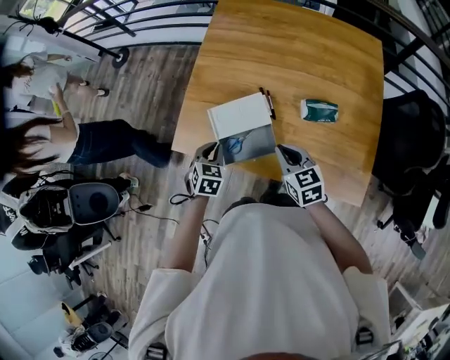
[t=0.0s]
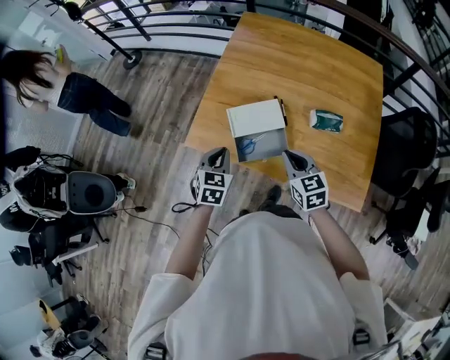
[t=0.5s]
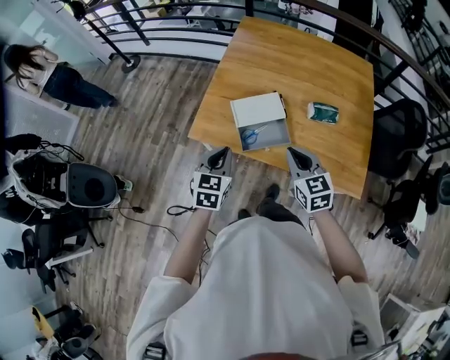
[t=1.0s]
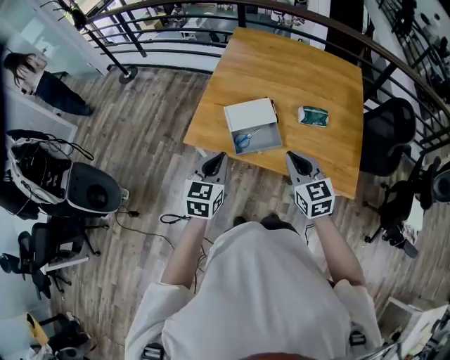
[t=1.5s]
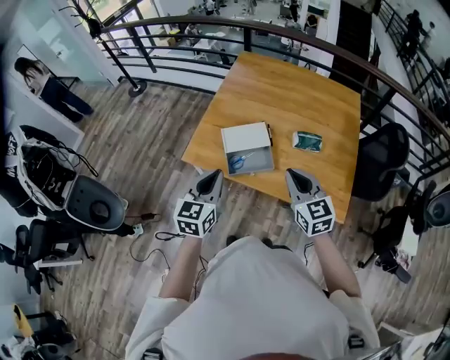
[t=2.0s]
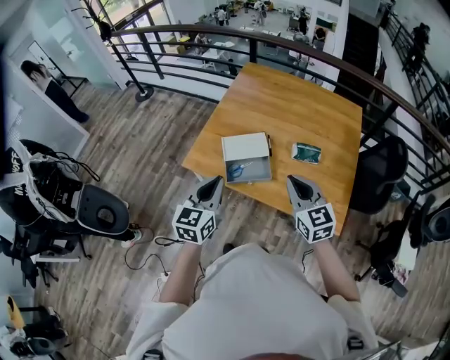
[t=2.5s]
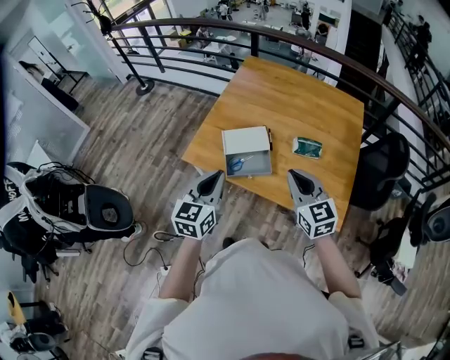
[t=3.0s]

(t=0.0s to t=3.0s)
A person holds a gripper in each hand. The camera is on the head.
t=0.0s - t=1.5s: The right gripper moves backward, upward and to the left, some 20 cm. Meanwhile the left gripper heads backward and upward, covering roughly 25 cm, and turns by roughly 30 degrees.
t=1.5s - t=3.0s: Both grippers move upward and to the right, some 10 cm.

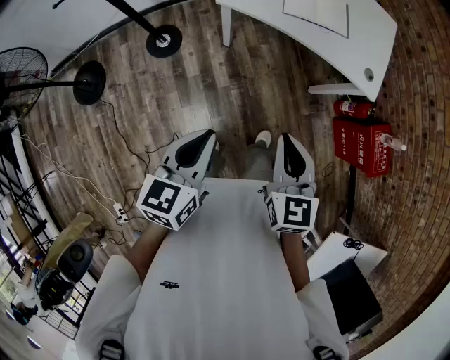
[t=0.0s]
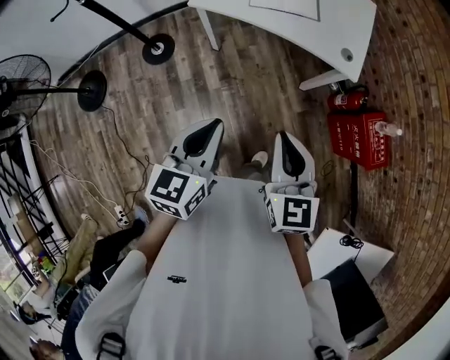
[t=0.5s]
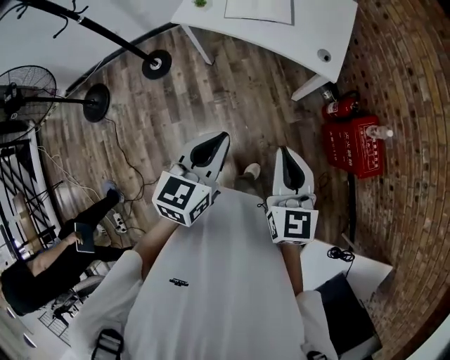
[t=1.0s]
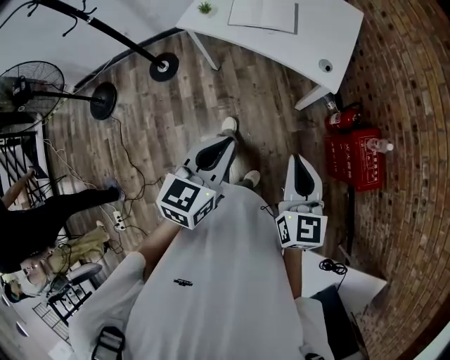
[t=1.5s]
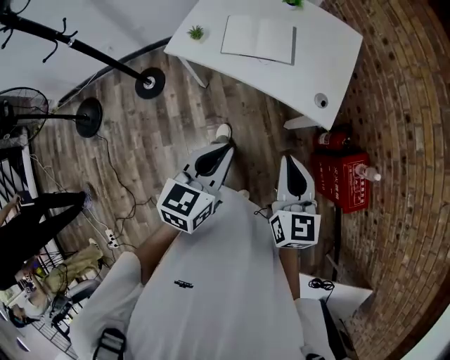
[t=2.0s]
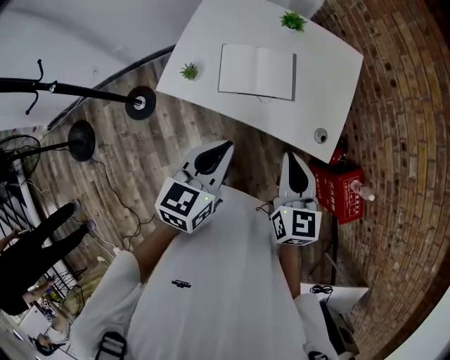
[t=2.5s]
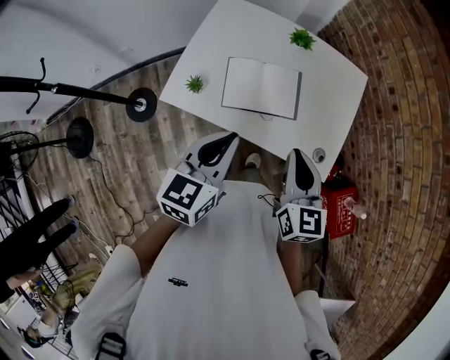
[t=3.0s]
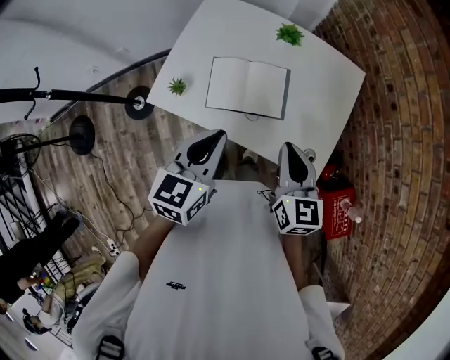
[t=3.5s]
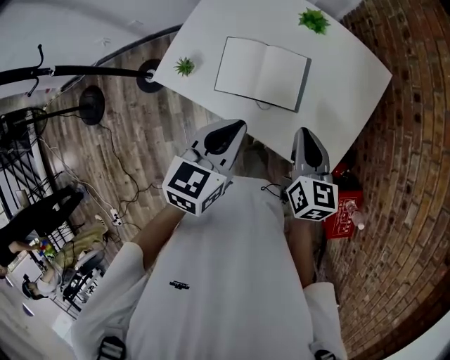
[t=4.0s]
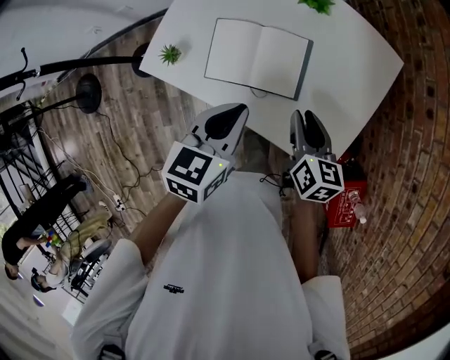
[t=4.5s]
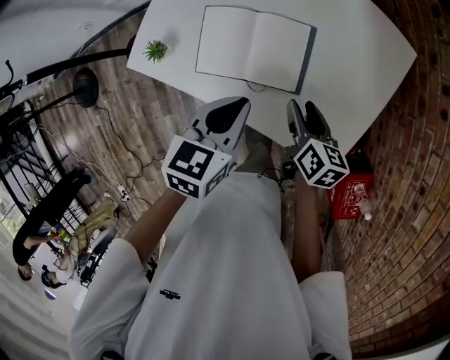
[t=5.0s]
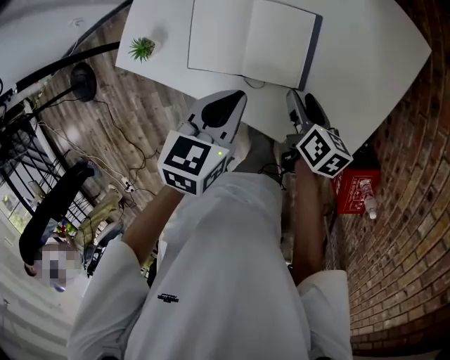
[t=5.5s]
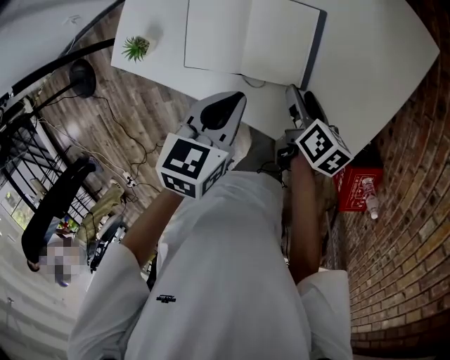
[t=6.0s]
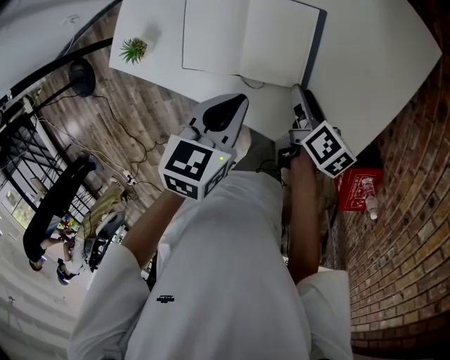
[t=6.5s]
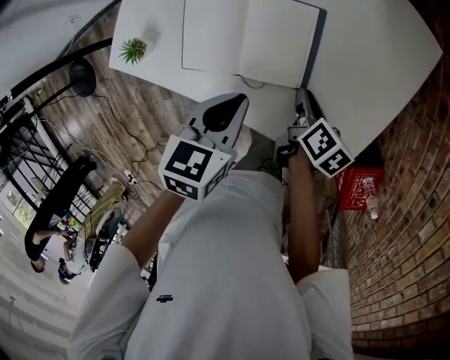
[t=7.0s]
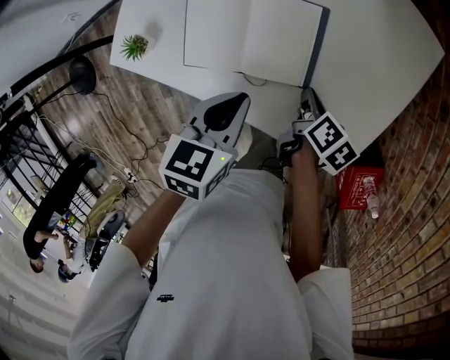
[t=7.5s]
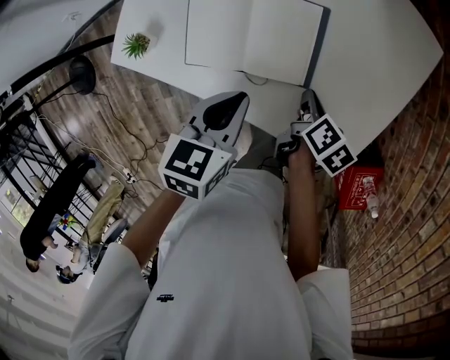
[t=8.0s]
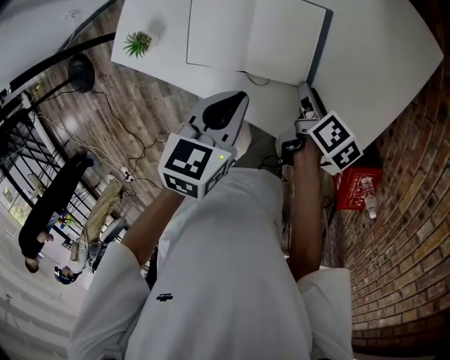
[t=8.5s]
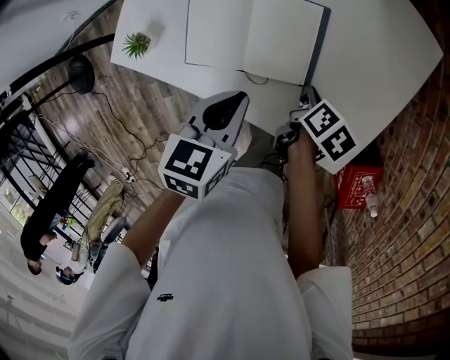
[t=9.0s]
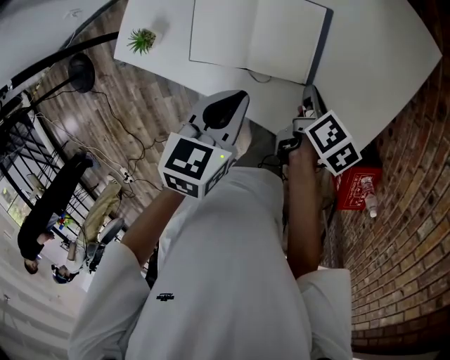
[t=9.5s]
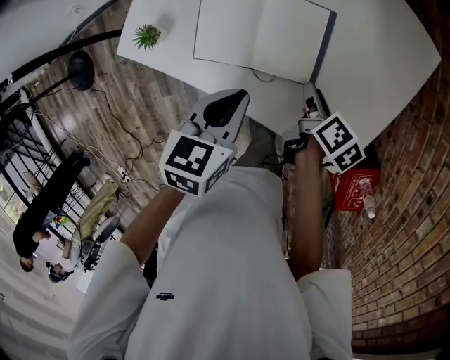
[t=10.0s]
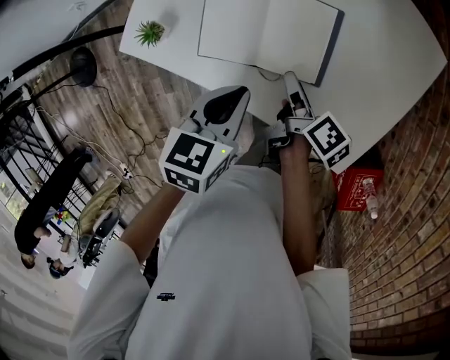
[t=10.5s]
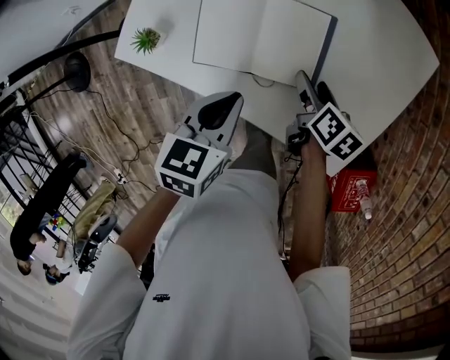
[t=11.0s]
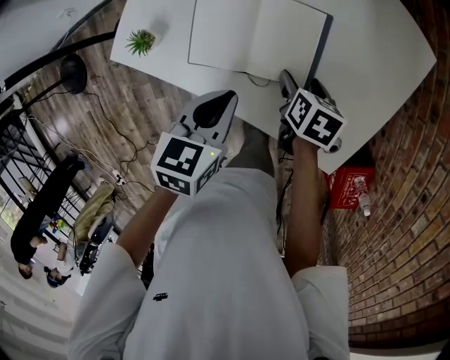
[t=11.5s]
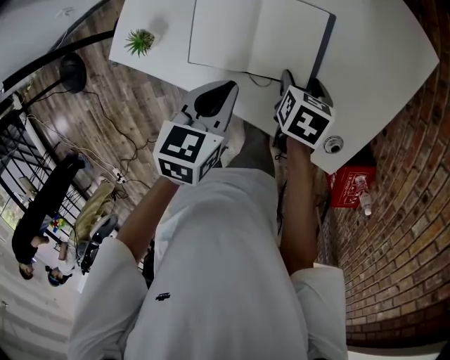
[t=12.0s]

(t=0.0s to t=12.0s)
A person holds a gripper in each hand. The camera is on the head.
t=0.0s - t=2.0s: Both grippers travel together to the right and forward, roughly 30 cm.
t=2.0s - t=4.0s: The grippers both shift forward by approximately 30 cm.
t=4.0s - t=6.0s: The grippers both shift downward by about 20 cm. The right gripper changes its angle by some 40 degrees, and opens.
t=6.0s - t=8.0s: The right gripper closes up.
t=8.0s - t=10.0s: The right gripper opens up.
t=10.0s - t=12.0s: The right gripper rotates roughly 40 degrees, and opens up.

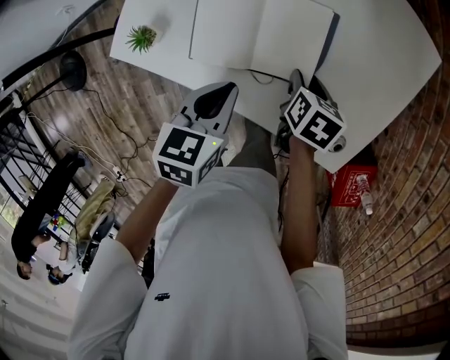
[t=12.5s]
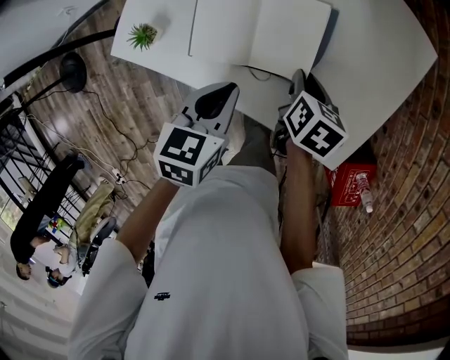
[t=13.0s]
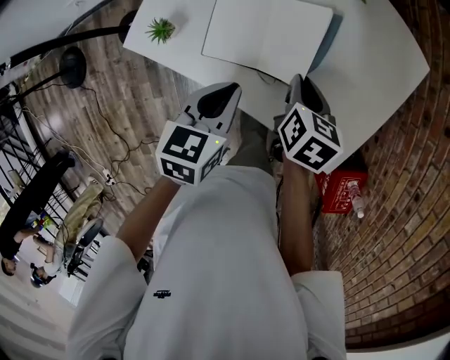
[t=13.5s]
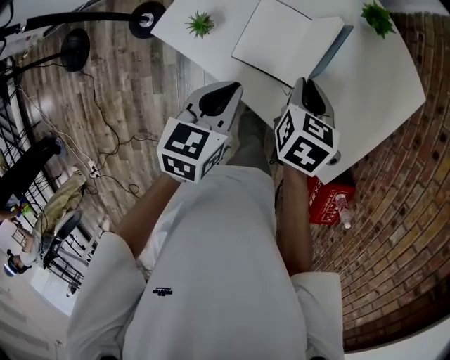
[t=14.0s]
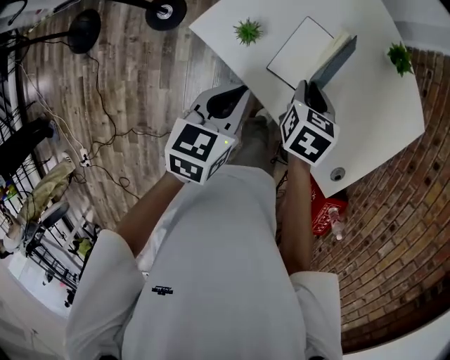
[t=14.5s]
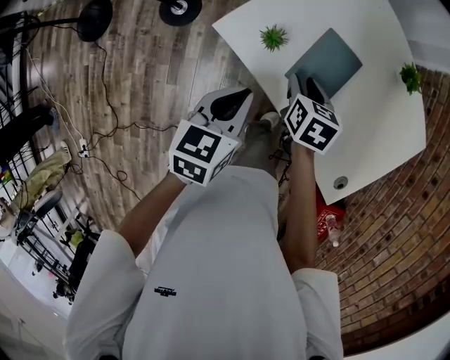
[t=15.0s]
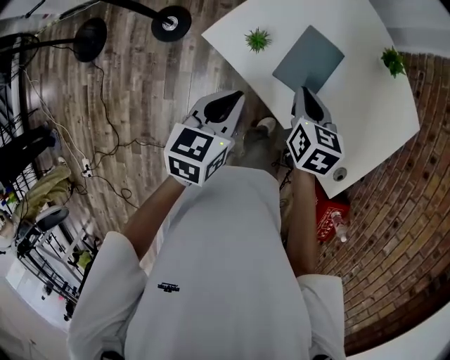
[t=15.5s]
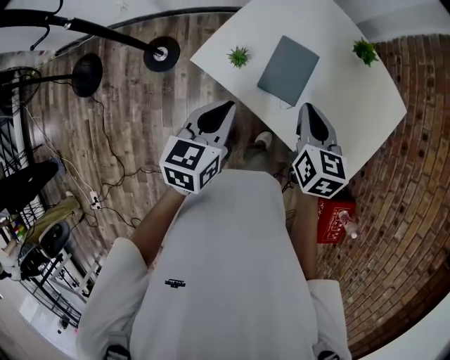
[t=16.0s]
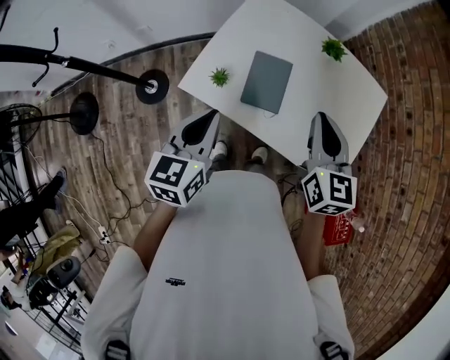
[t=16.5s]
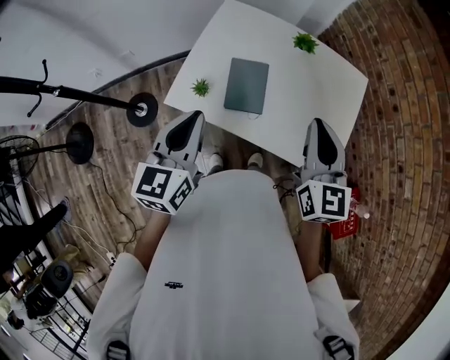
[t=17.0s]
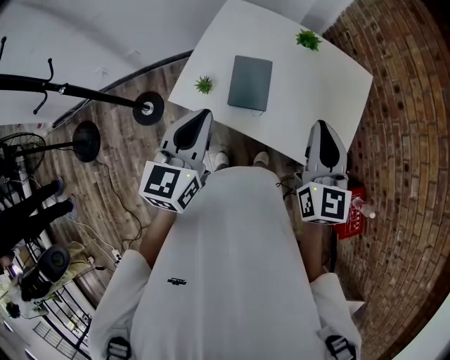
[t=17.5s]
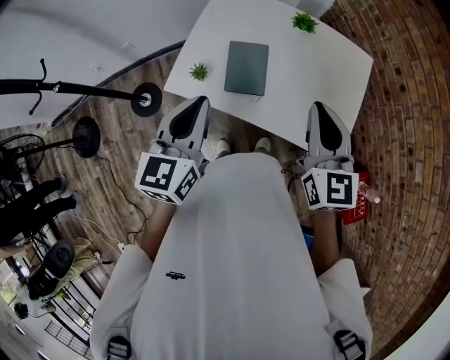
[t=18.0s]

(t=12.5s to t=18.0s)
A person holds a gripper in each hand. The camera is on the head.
t=12.5s - t=14.5s: The two grippers go approximately 20 cm to the left and upward. The right gripper rotates some 30 degrees.
t=14.5s - t=16.0s: The left gripper travels upward by some 10 cm; the right gripper is displaced upward by about 15 cm, and rotates approximately 20 degrees.
t=16.0s - t=18.0s: The right gripper travels upward, to the right and backward by some 20 cm, and changes its angle by about 30 degrees; the left gripper travels upward by some 15 cm, and swivels approximately 20 degrees.

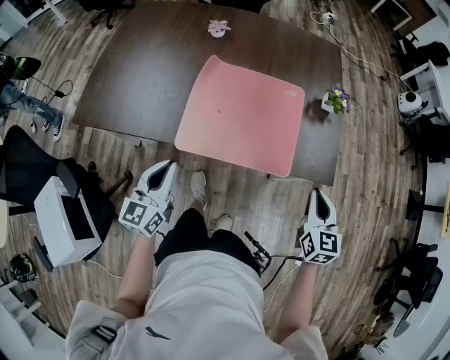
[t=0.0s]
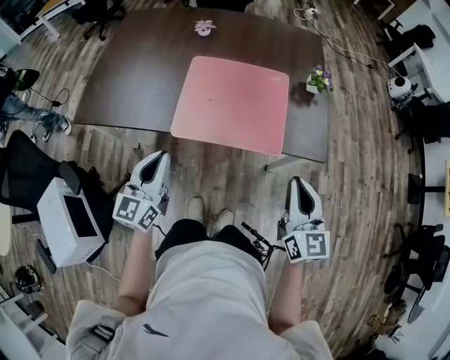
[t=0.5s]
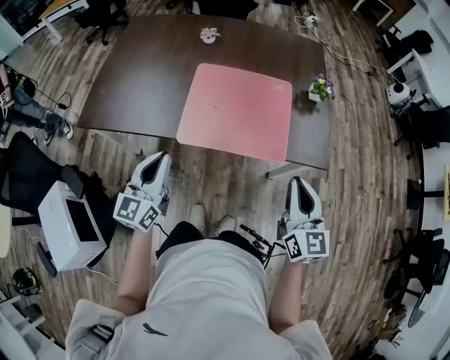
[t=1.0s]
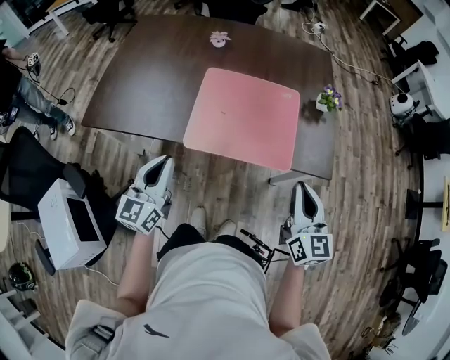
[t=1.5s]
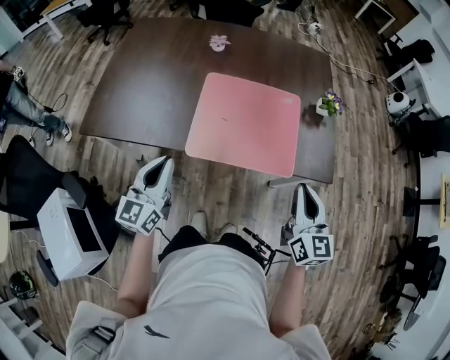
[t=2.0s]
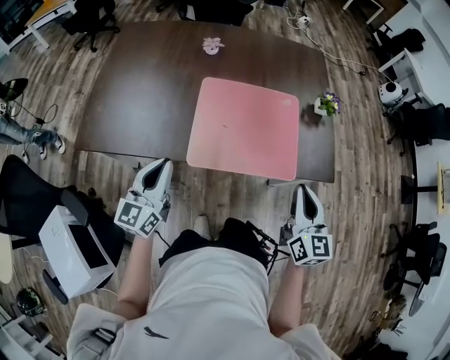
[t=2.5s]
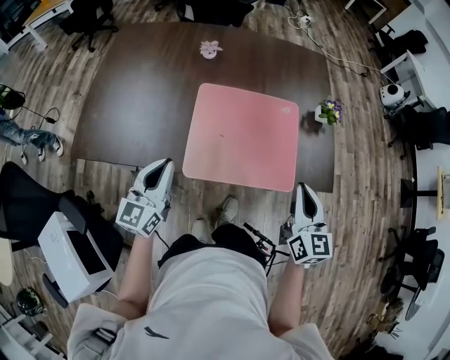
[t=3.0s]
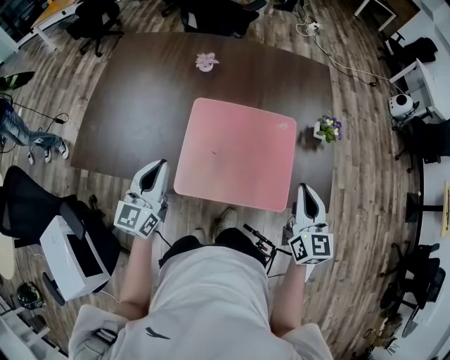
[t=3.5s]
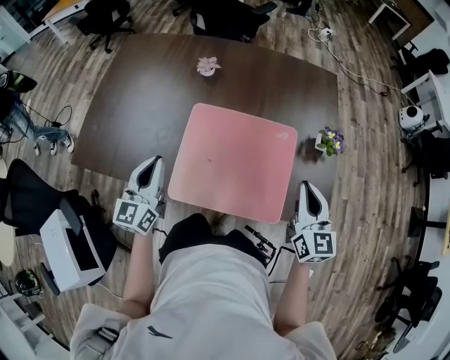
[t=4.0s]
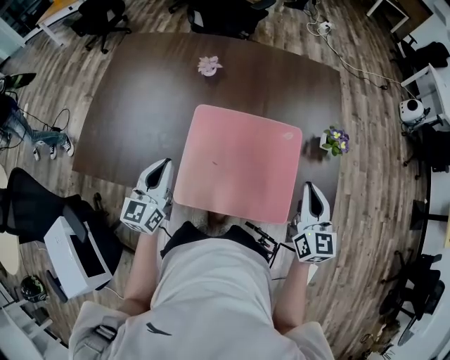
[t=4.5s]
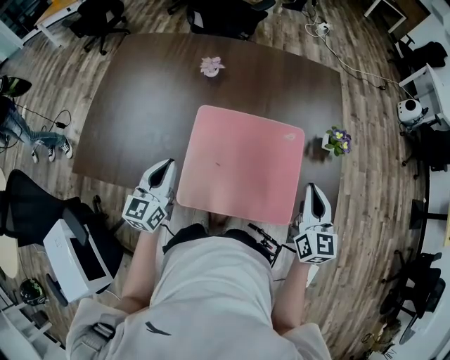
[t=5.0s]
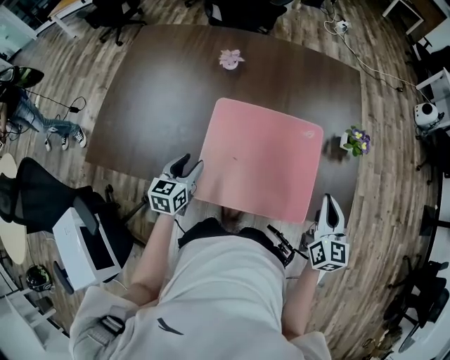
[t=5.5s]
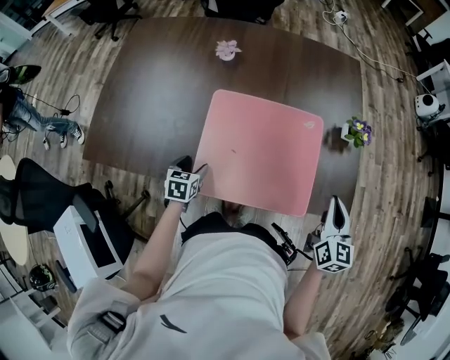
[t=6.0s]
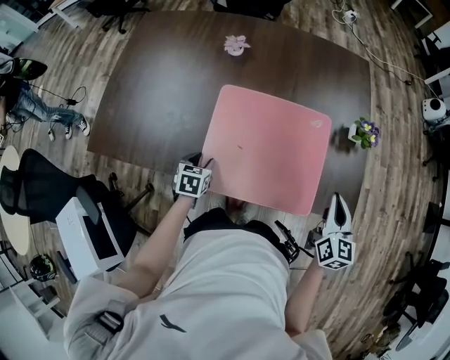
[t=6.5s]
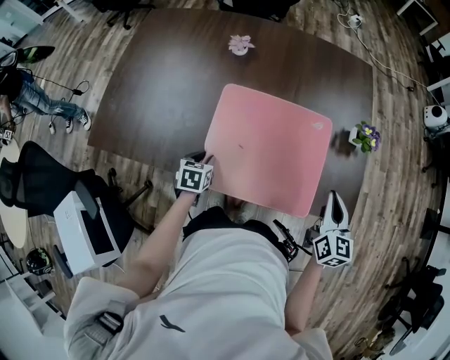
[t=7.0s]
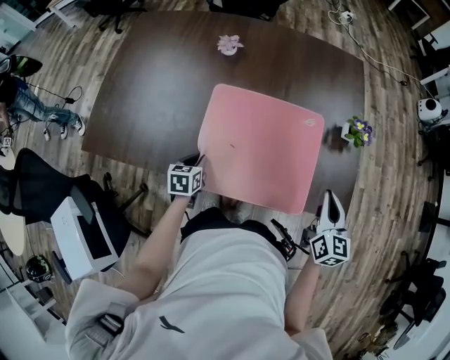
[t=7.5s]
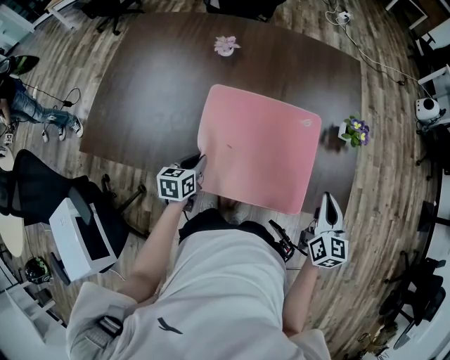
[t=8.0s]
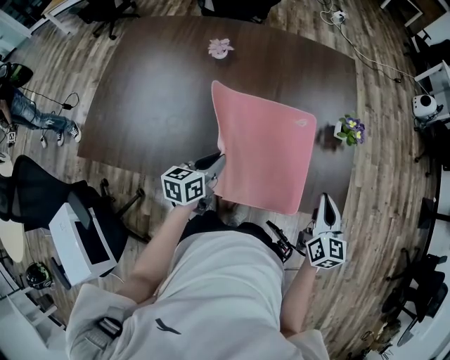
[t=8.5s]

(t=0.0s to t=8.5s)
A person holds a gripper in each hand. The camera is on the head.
t=0.0s - t=2.0s: The right gripper shifts some 15 cm to the left and upward. Meanwhile the left gripper shifts about 5 cm upward.
t=2.0s - t=4.0s: The two grippers go about 20 cm forward.
t=4.0s - t=6.5s: The right gripper moves downward, about 10 cm. Meanwhile the left gripper moves downward, some 25 cm, points its fingers approximately 50 degrees further downward, and opens its fingers.
t=6.5s - t=8.5s: The left gripper moves upward and to the right, approximately 15 cm, swivels about 30 degrees, and closes up.
